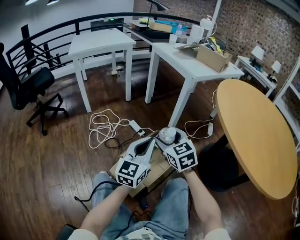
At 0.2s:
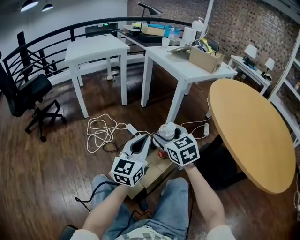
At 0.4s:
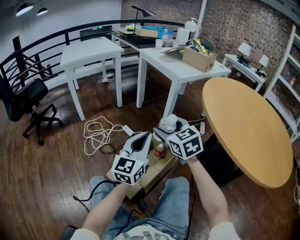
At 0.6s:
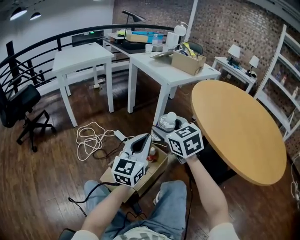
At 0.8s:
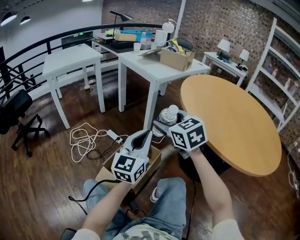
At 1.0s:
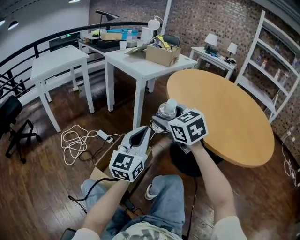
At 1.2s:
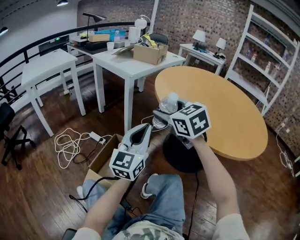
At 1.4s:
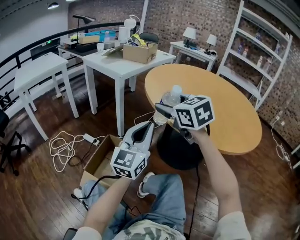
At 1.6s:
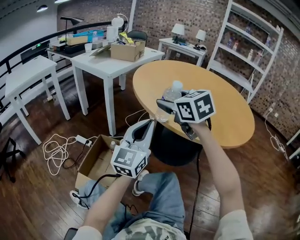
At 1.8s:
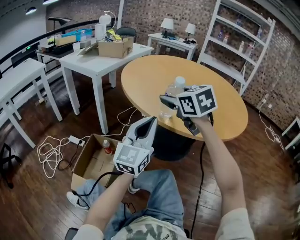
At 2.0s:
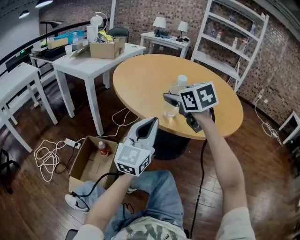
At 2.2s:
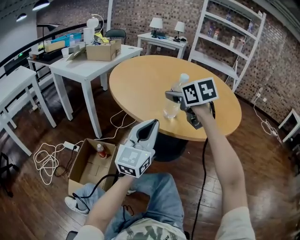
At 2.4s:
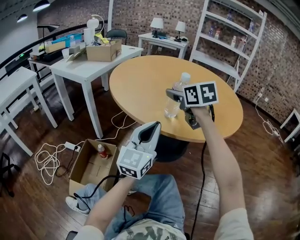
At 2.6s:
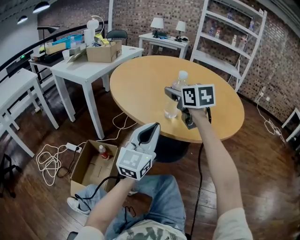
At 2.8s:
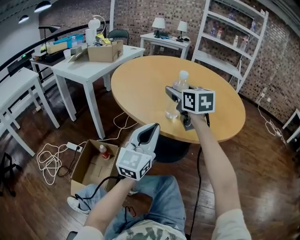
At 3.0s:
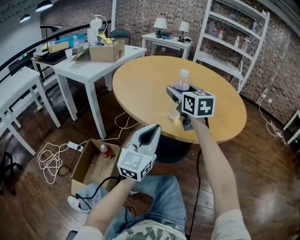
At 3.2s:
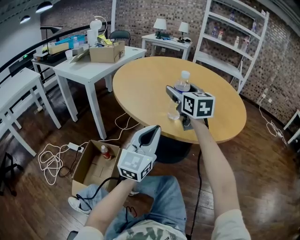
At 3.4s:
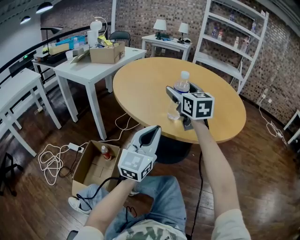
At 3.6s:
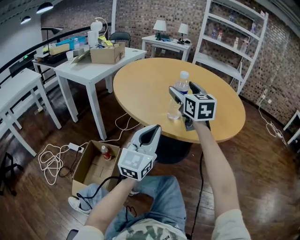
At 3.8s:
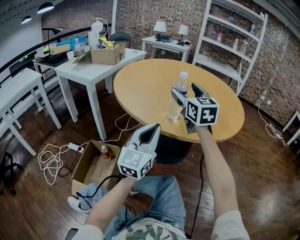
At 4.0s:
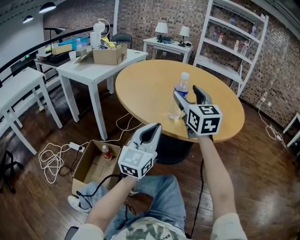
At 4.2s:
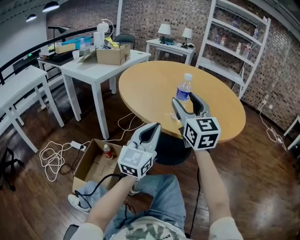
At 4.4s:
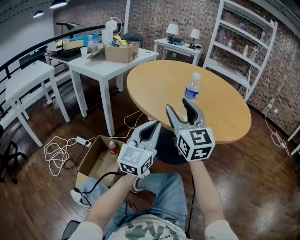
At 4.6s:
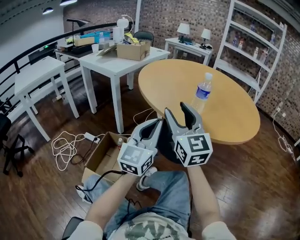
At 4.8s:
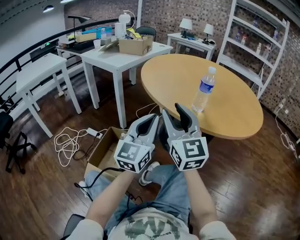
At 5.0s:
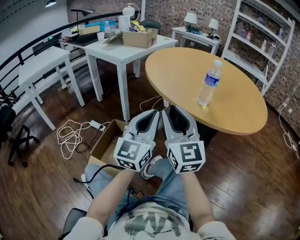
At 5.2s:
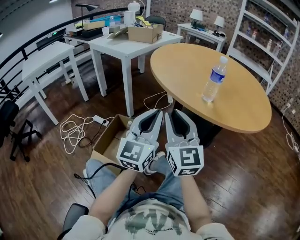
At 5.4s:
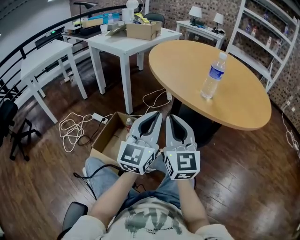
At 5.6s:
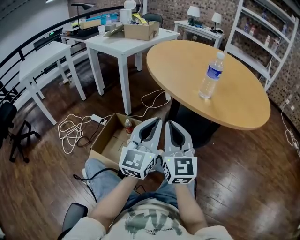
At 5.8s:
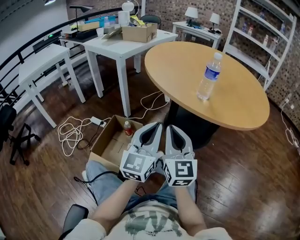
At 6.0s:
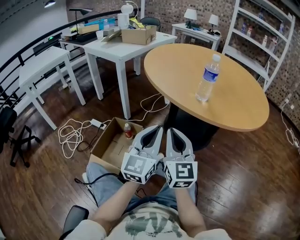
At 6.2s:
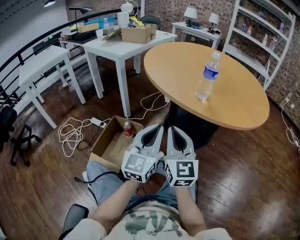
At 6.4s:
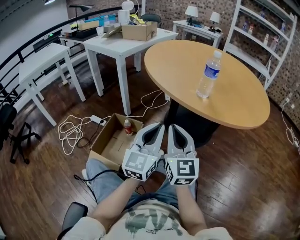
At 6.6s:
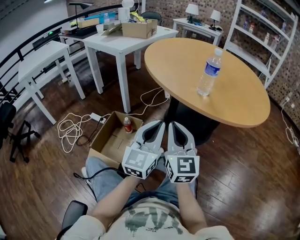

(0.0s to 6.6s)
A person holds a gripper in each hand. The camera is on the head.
0.0s - 1.6s: The left gripper shifts by some 30 cm, and rotates about 30 degrees. Meanwhile the right gripper shifts by about 40 cm, and rotates some 30 degrees.
1.6s - 3.2s: The left gripper travels to the right by some 10 cm; the right gripper heads to the right and forward, covering some 20 cm, and swivels roughly 30 degrees.
3.2s - 5.0s: The right gripper moves backward and to the left, some 25 cm, changes its angle by roughly 20 degrees, and closes its fingers; the left gripper goes roughly 15 cm to the left and backward.
5.0s - 6.6s: Both grippers travel together downward, about 10 cm.

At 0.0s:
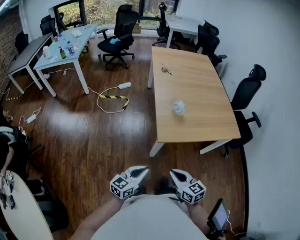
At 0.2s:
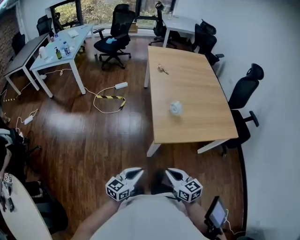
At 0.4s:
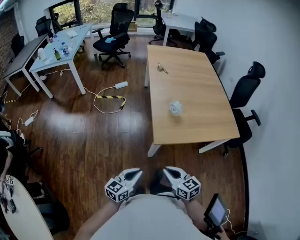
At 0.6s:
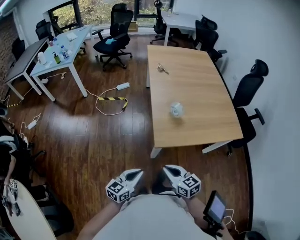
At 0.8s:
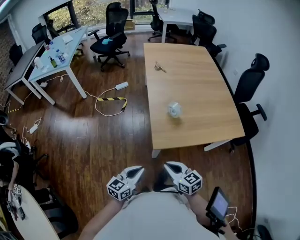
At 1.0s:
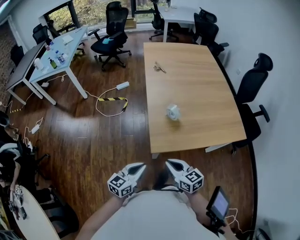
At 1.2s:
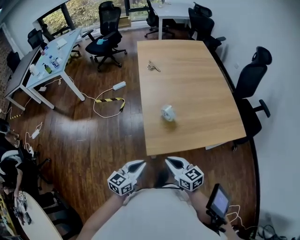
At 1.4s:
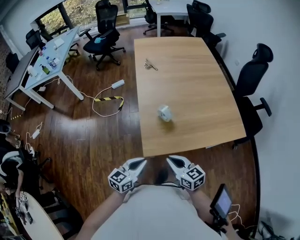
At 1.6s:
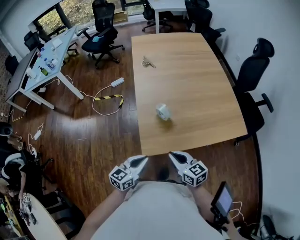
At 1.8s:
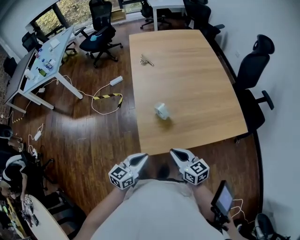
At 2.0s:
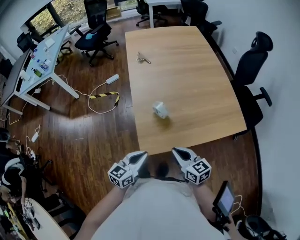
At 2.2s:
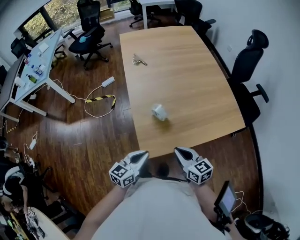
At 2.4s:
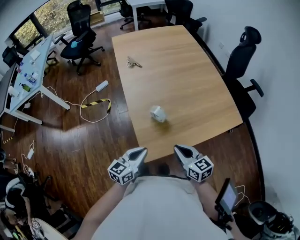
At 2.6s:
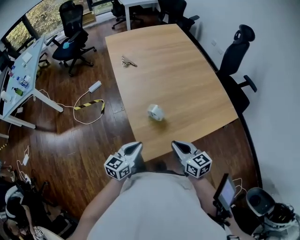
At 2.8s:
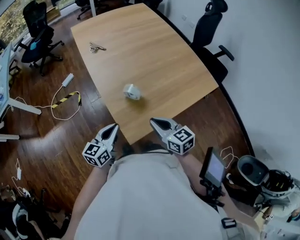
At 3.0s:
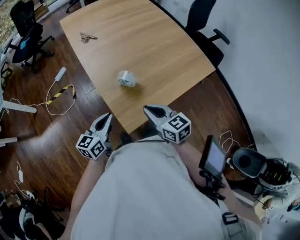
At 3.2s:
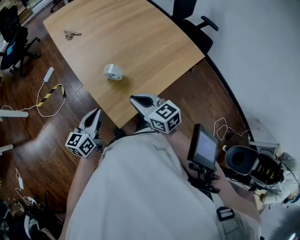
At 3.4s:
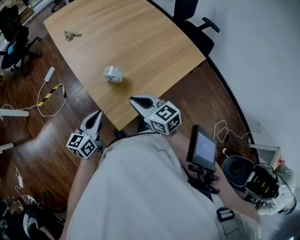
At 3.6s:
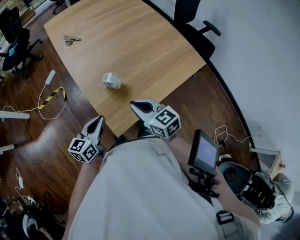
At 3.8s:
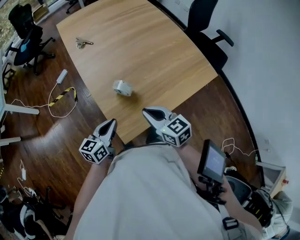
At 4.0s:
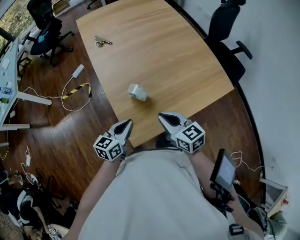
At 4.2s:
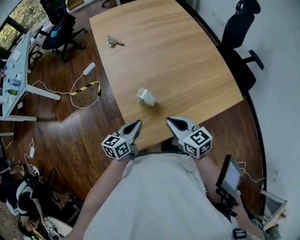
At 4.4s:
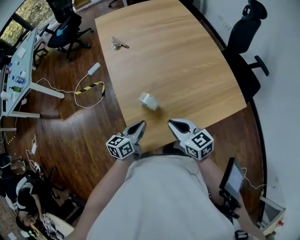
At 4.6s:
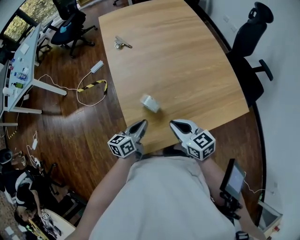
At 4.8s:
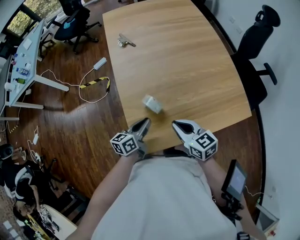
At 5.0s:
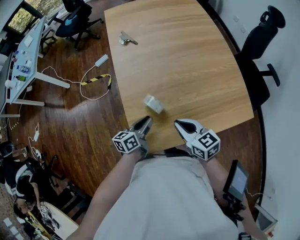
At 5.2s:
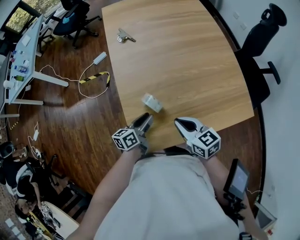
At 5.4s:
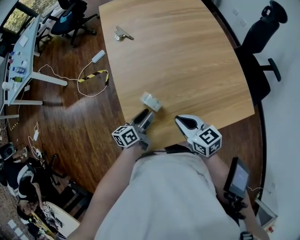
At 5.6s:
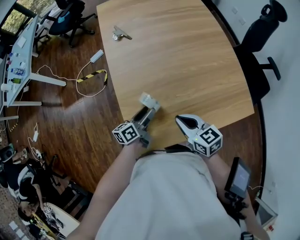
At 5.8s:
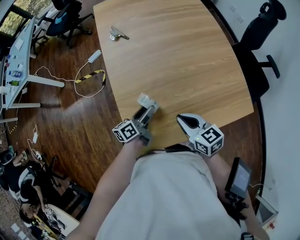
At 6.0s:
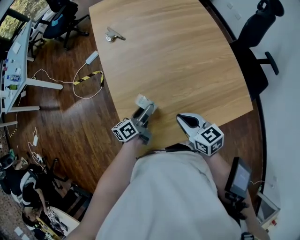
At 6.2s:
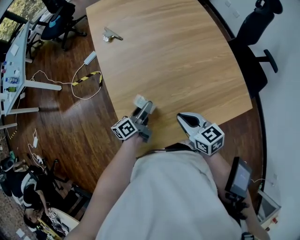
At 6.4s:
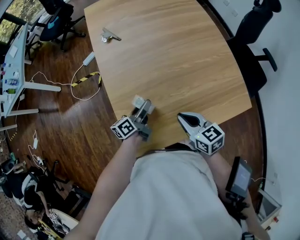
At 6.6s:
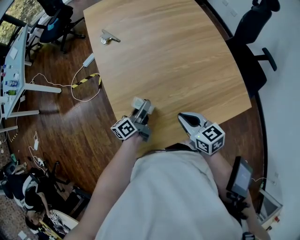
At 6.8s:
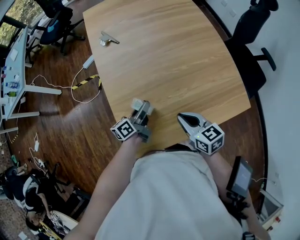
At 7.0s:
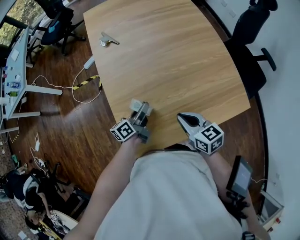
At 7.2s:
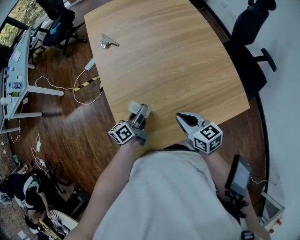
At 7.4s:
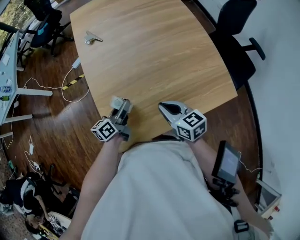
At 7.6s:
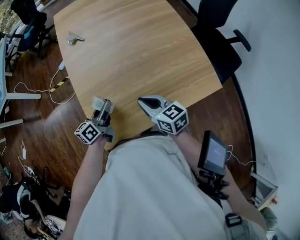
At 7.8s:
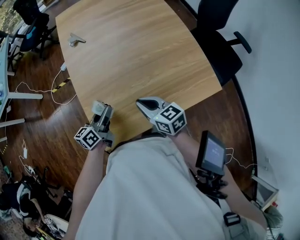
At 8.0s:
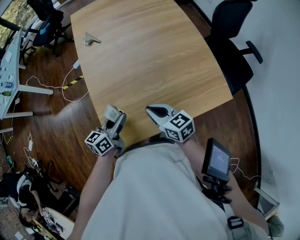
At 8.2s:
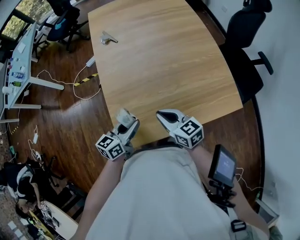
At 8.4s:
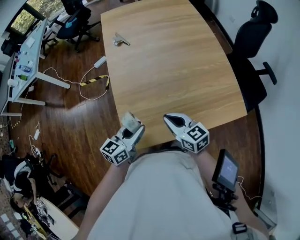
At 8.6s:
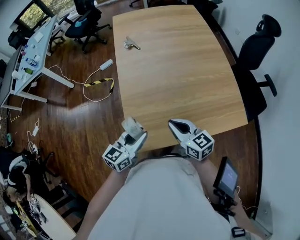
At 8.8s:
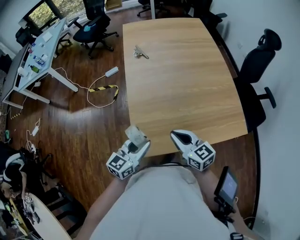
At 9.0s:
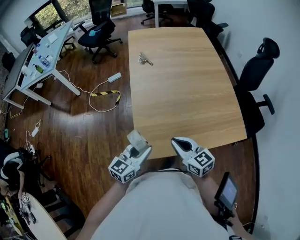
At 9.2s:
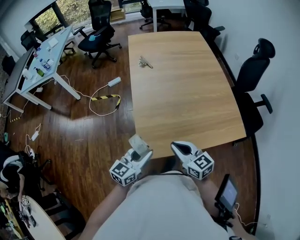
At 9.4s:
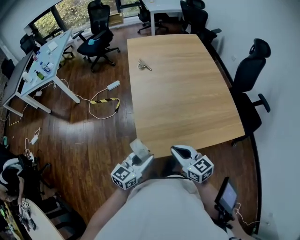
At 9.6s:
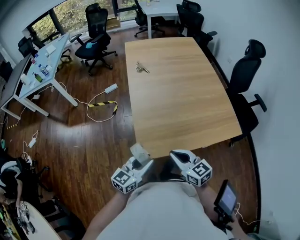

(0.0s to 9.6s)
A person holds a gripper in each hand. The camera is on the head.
0.0s - 1.6s: Both grippers travel together forward and to the right, about 25 cm.
1.6s - 3.2s: The left gripper moves forward and to the left, approximately 15 cm, while the right gripper goes some 10 cm forward and to the left, and swivels about 20 degrees.
3.2s - 4.8s: The right gripper travels forward and to the right by some 10 cm; the left gripper is displaced to the right, forward and downward by approximately 15 cm, and turns by roughly 20 degrees.
4.8s - 6.4s: The left gripper moves forward, approximately 10 cm, and opens its fingers; the right gripper heads to the right, covering some 5 cm.
6.4s - 8.0s: The left gripper shifts approximately 10 cm backward and upward, and changes its angle by approximately 30 degrees.
8.0s - 9.6s: The left gripper shifts about 20 cm backward and to the left, and swivels approximately 30 degrees, while the right gripper heads backward, to the left and upward, covering about 20 cm.

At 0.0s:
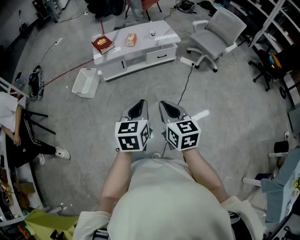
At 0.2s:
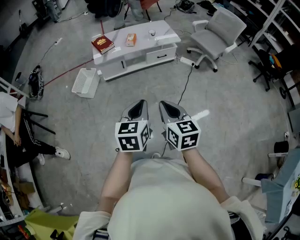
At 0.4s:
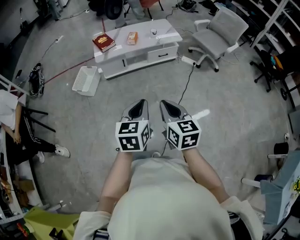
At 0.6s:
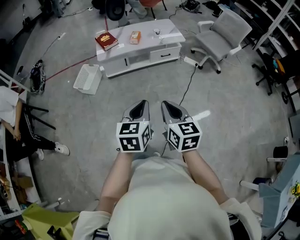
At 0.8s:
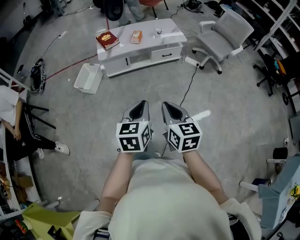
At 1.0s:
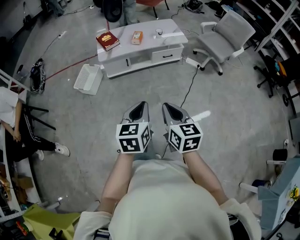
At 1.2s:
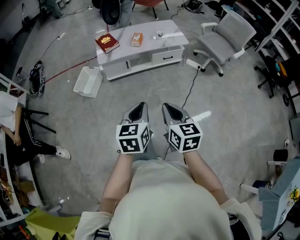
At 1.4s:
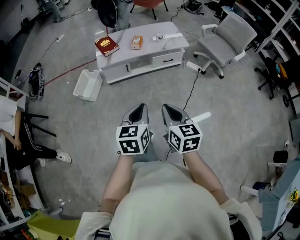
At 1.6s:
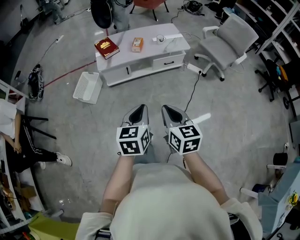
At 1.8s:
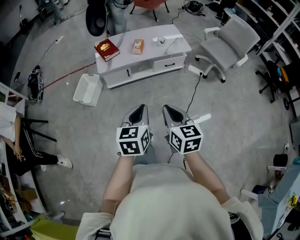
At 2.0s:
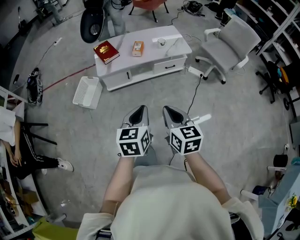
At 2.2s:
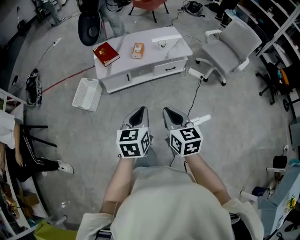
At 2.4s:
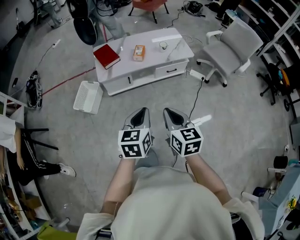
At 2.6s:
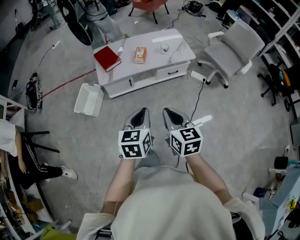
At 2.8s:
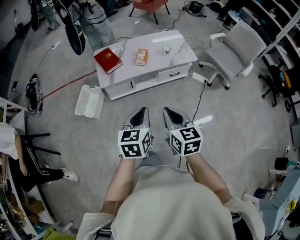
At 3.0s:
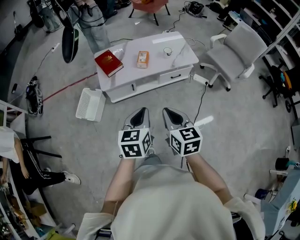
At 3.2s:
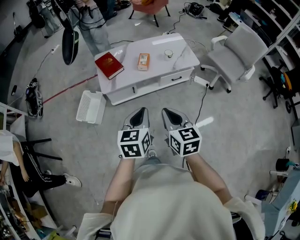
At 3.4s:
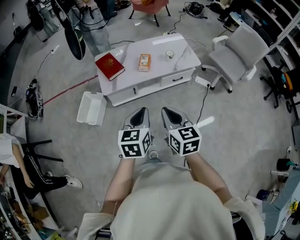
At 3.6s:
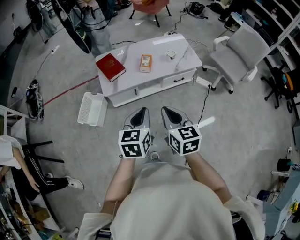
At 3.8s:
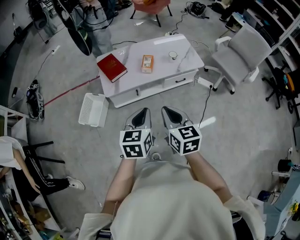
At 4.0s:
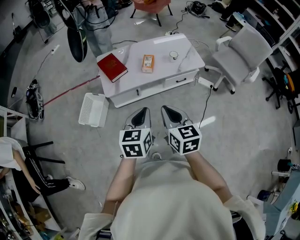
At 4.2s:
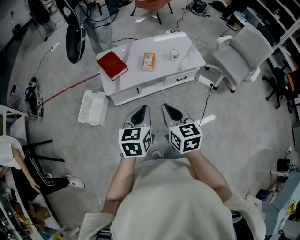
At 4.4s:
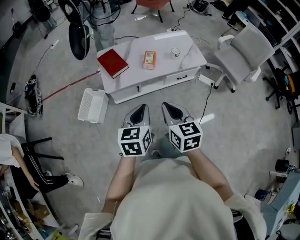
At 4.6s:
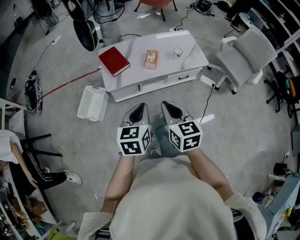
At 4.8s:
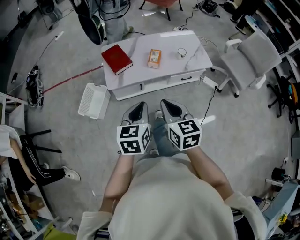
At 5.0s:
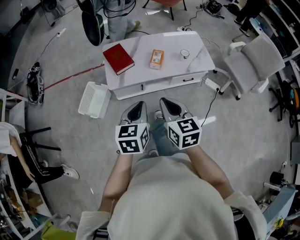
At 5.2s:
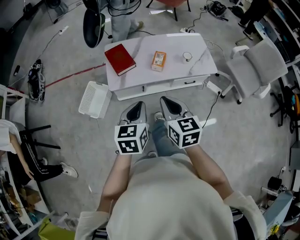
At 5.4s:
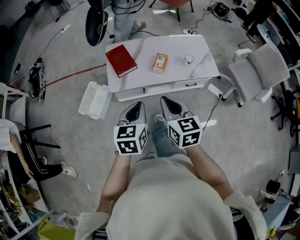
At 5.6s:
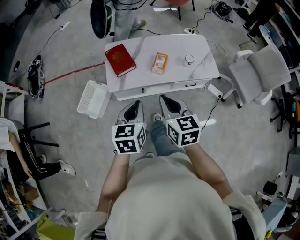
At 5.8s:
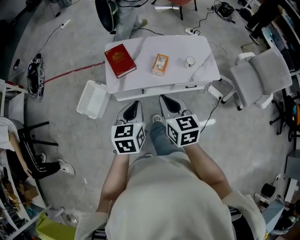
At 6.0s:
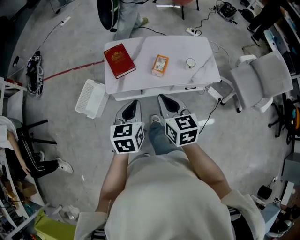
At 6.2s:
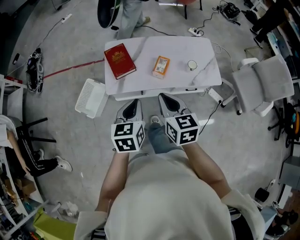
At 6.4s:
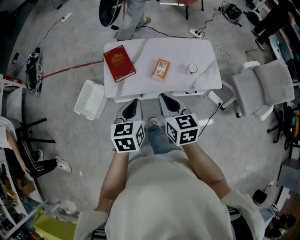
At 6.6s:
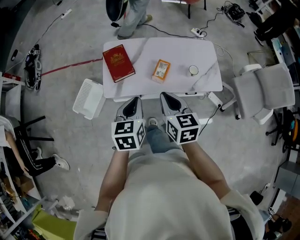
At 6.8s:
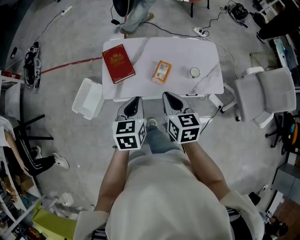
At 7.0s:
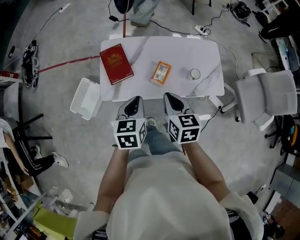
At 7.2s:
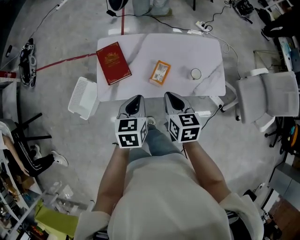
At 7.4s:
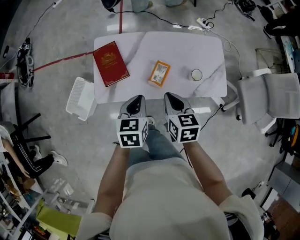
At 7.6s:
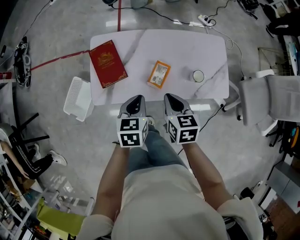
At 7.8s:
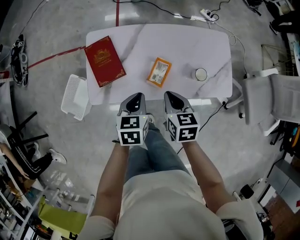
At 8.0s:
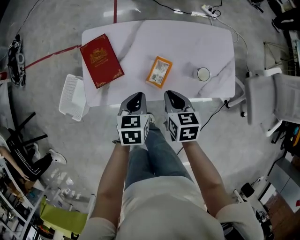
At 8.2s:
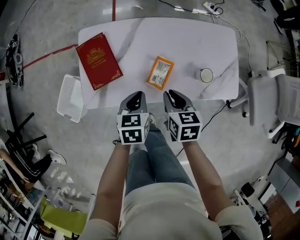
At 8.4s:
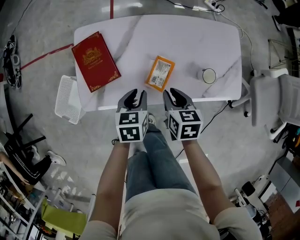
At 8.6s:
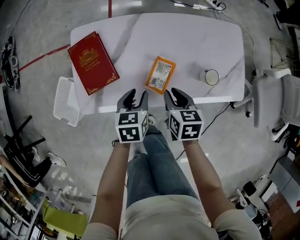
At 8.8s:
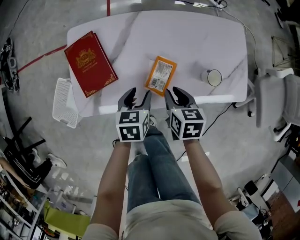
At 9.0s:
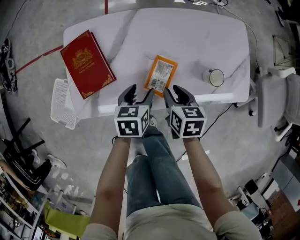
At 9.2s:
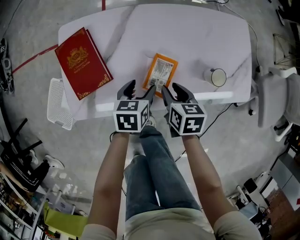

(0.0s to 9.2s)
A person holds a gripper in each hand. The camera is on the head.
0.0s - 1.6s: The grippers both shift forward by roughly 15 cm.
1.6s - 3.0s: The grippers both shift forward by roughly 20 cm.
3.0s - 4.6s: Both grippers move forward and to the left, some 10 cm.
4.6s - 6.2s: The grippers both shift forward by roughly 20 cm.
6.2s - 7.6s: The left gripper moves forward and downward, about 25 cm; the right gripper is displaced forward, downward and to the right by some 25 cm.
7.6s - 9.2s: Both grippers move downward, roughly 25 cm. The left gripper opens its fingers; the right gripper opens up.
